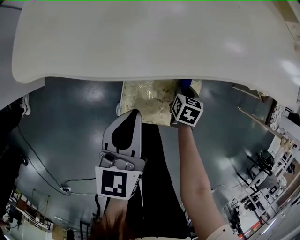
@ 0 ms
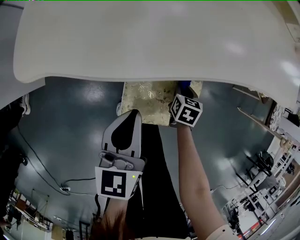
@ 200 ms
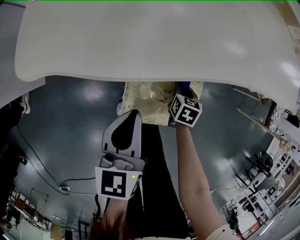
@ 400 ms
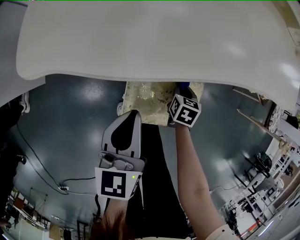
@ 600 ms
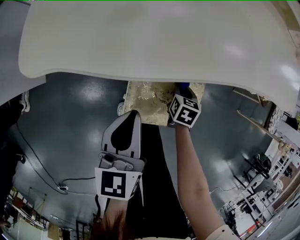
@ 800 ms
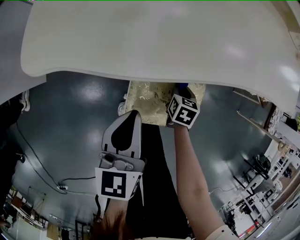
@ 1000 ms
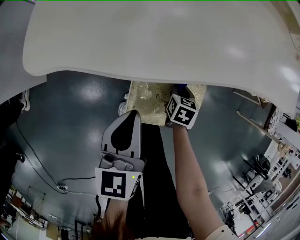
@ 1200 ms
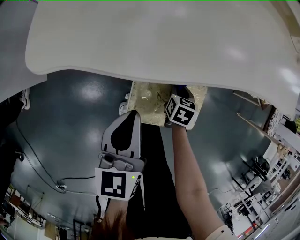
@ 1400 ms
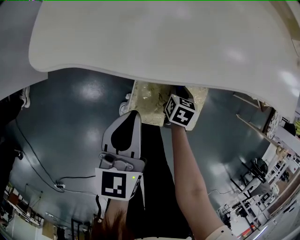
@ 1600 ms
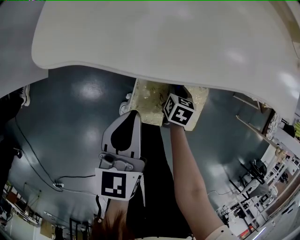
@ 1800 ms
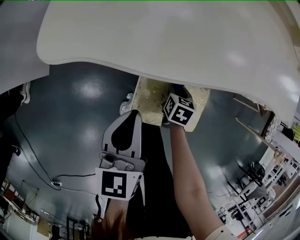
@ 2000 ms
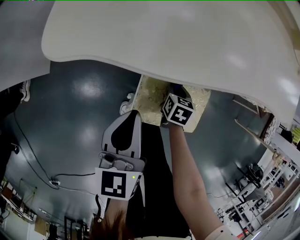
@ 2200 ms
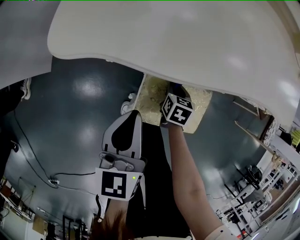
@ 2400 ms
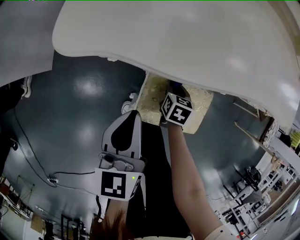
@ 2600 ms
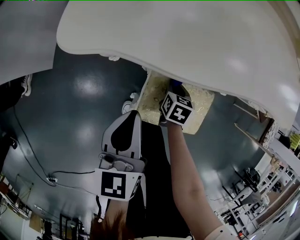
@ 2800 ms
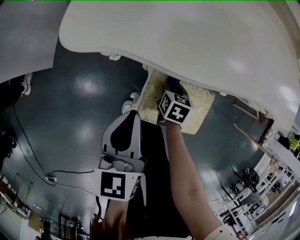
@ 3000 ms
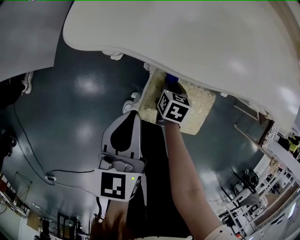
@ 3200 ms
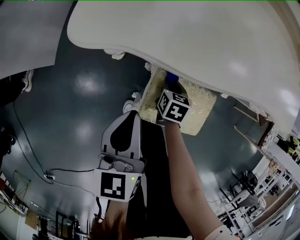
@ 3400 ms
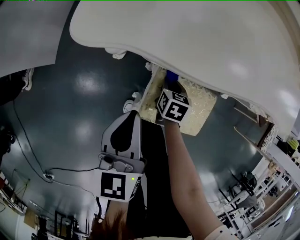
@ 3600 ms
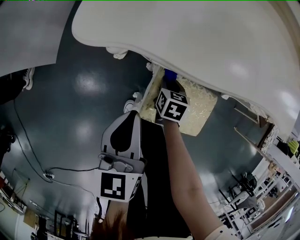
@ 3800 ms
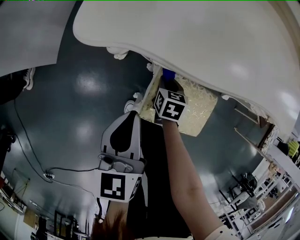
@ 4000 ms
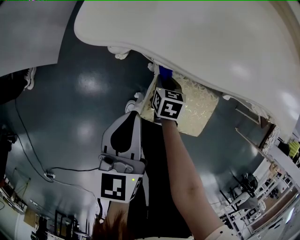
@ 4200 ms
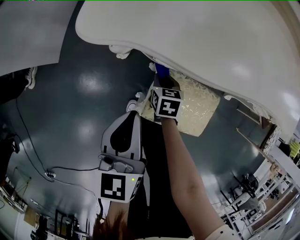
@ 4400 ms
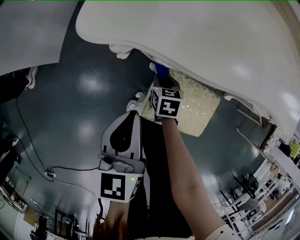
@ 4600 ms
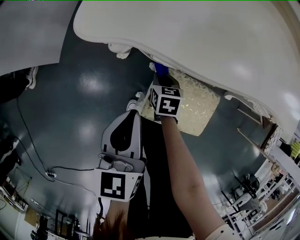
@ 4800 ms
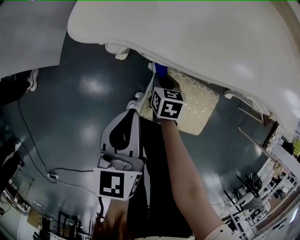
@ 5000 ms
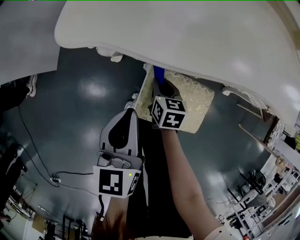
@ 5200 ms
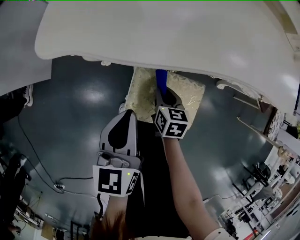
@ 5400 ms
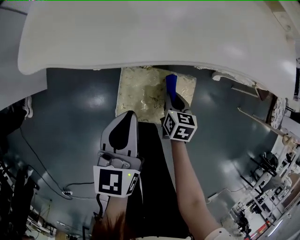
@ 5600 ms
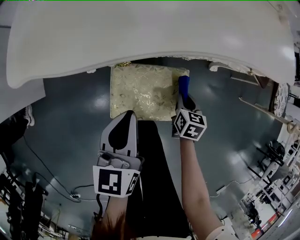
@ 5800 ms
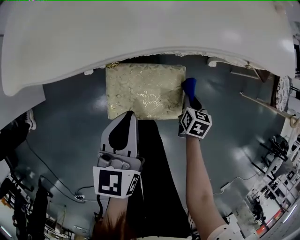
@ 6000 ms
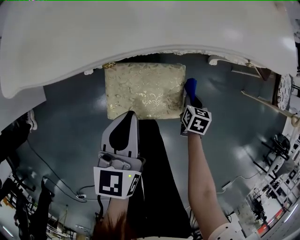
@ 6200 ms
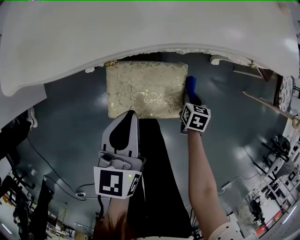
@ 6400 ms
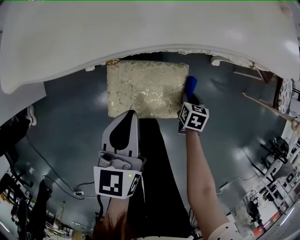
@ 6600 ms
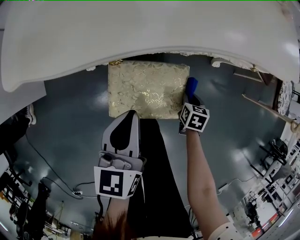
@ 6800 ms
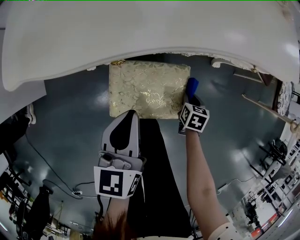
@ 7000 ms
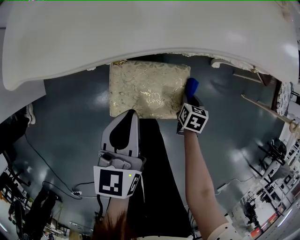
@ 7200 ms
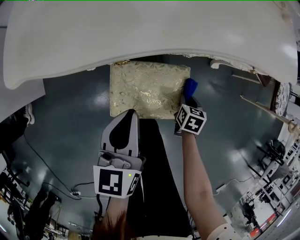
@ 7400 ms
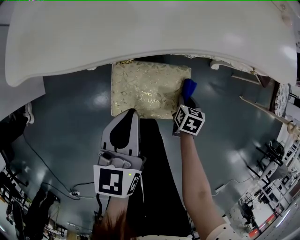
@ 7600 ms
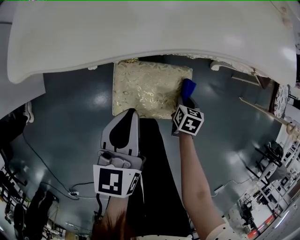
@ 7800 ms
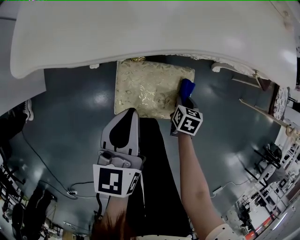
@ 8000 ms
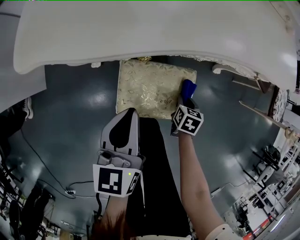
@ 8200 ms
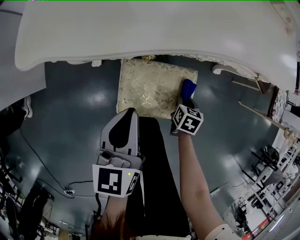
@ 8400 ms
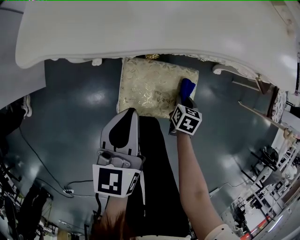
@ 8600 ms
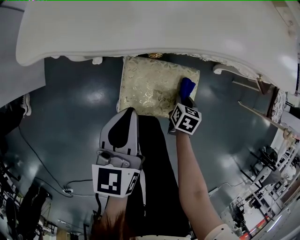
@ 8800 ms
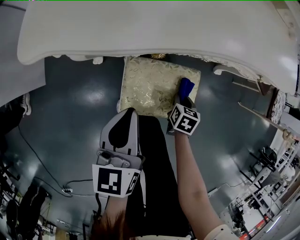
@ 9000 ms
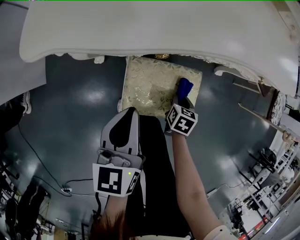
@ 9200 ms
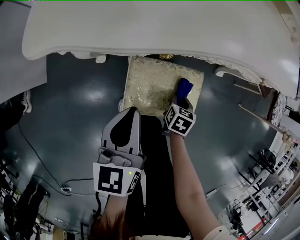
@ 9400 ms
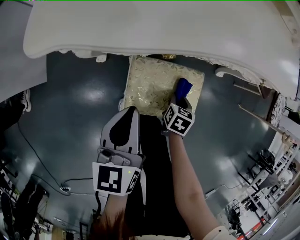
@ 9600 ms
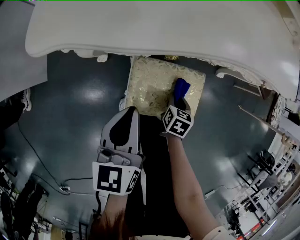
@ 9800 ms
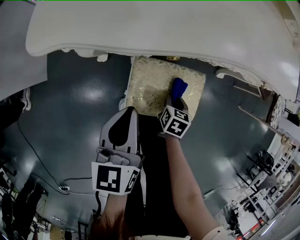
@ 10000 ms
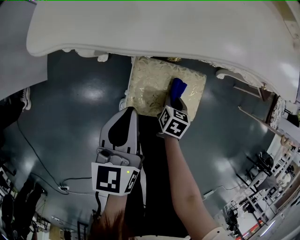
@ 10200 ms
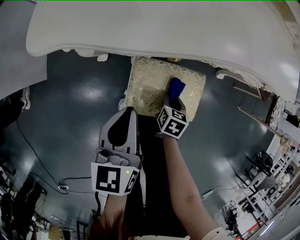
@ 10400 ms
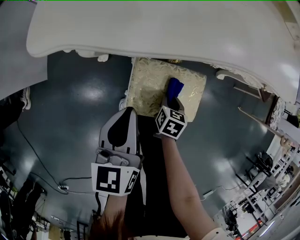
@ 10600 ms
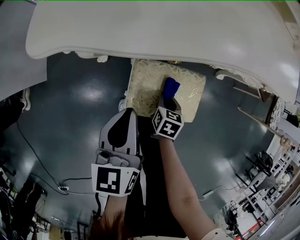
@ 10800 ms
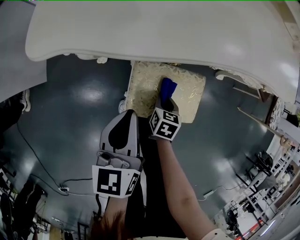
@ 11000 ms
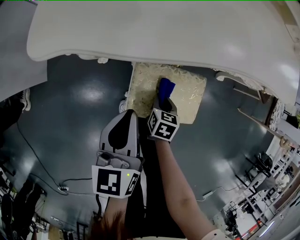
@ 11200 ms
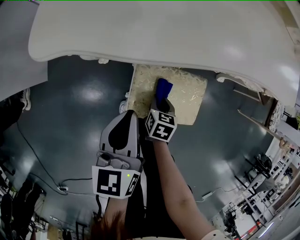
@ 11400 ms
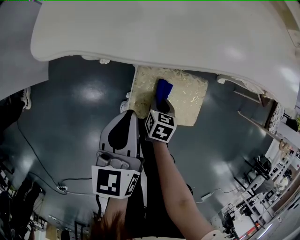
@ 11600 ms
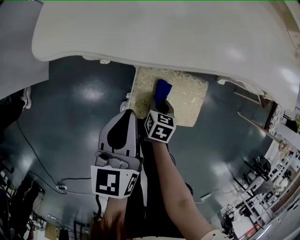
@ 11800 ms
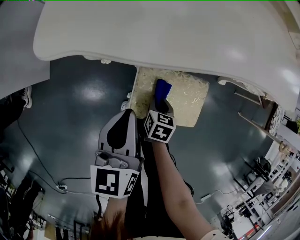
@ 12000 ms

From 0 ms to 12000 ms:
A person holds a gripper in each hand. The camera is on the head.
From 0 ms to 1600 ms: The right gripper travels to the left by about 5 cm.
From 1600 ms to 3000 ms: The left gripper shifts by about 5 cm, while the right gripper heads to the left, covering roughly 10 cm.
From 3000 ms to 4400 ms: The right gripper heads to the left, covering about 10 cm.
From 4400 ms to 6000 ms: The right gripper ends up roughly 35 cm from where it was, and rotates about 30 degrees. Meanwhile the left gripper shifts by some 20 cm, and changes its angle by some 20 degrees.
From 6000 ms to 7600 ms: The grippers move only a little.
From 7600 ms to 9000 ms: Both grippers move to the left, approximately 5 cm.
From 9000 ms to 10400 ms: The right gripper travels to the left by roughly 10 cm.
From 10400 ms to 12000 ms: The right gripper is displaced to the left by about 10 cm.

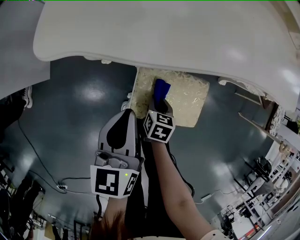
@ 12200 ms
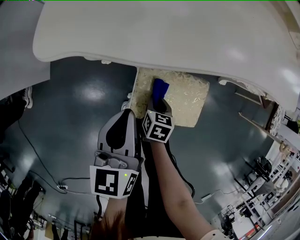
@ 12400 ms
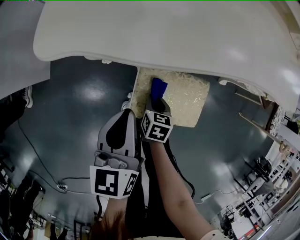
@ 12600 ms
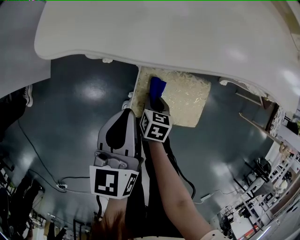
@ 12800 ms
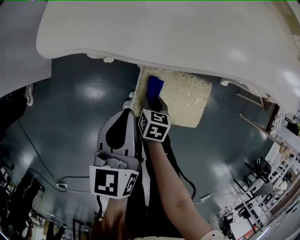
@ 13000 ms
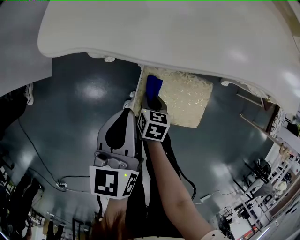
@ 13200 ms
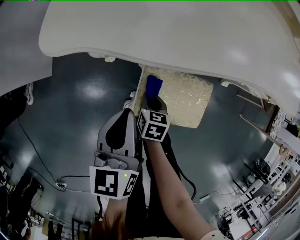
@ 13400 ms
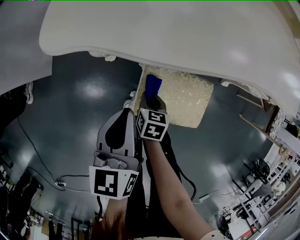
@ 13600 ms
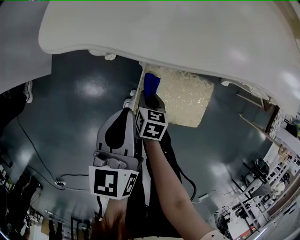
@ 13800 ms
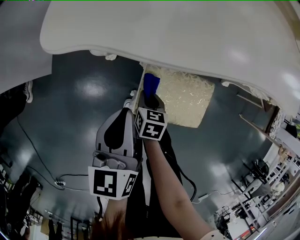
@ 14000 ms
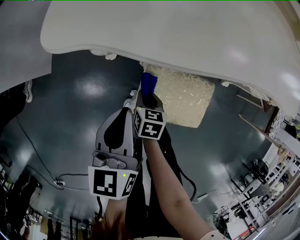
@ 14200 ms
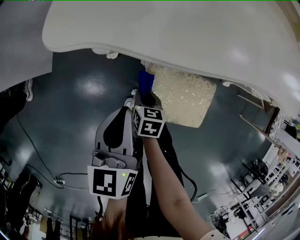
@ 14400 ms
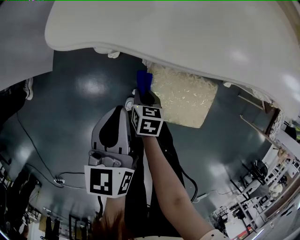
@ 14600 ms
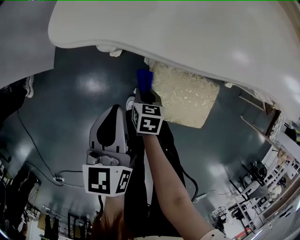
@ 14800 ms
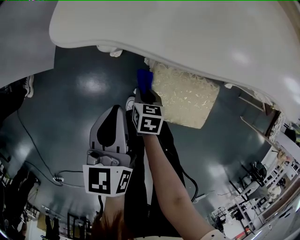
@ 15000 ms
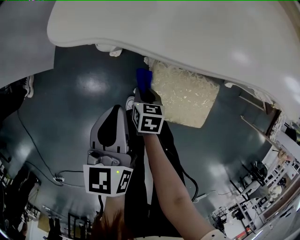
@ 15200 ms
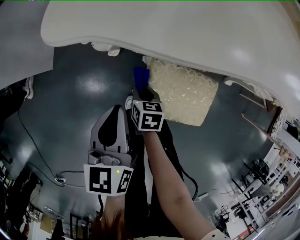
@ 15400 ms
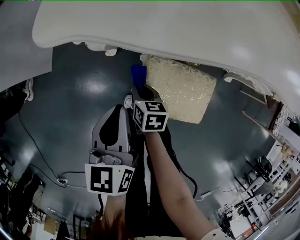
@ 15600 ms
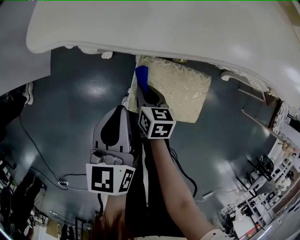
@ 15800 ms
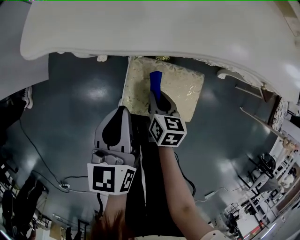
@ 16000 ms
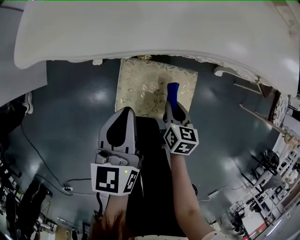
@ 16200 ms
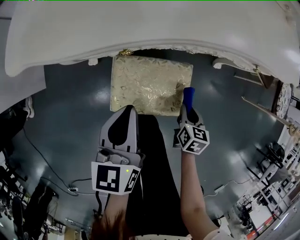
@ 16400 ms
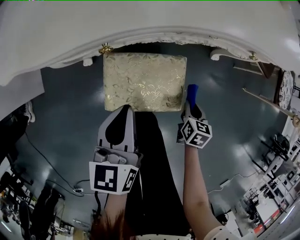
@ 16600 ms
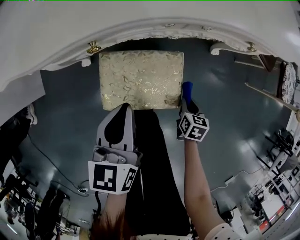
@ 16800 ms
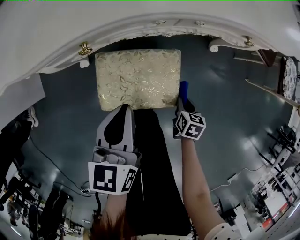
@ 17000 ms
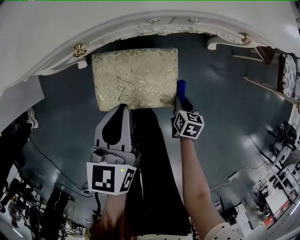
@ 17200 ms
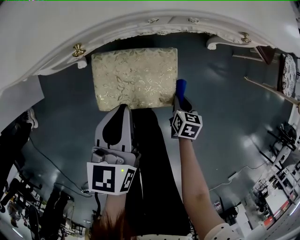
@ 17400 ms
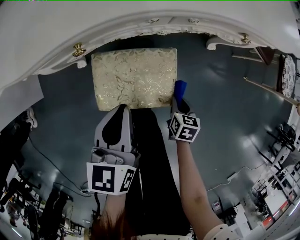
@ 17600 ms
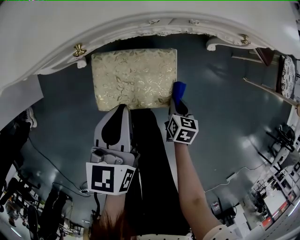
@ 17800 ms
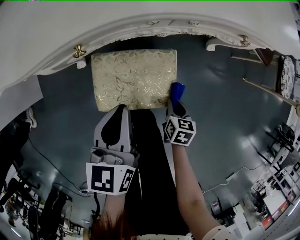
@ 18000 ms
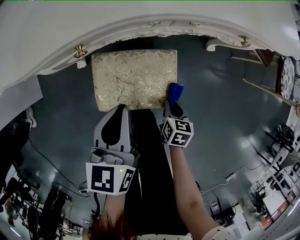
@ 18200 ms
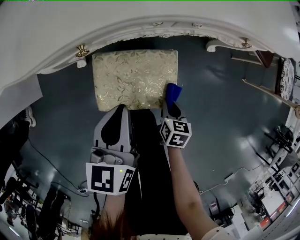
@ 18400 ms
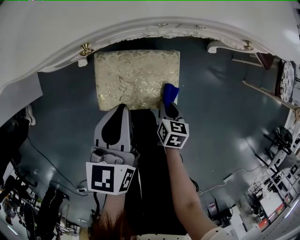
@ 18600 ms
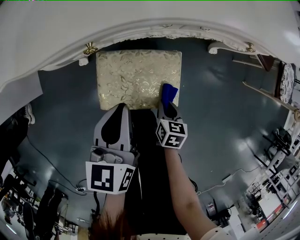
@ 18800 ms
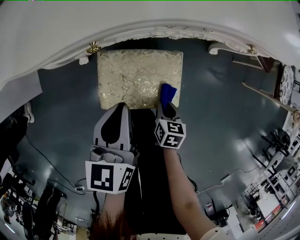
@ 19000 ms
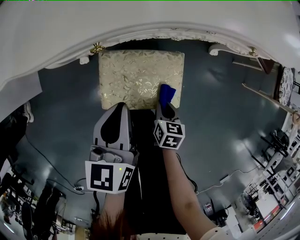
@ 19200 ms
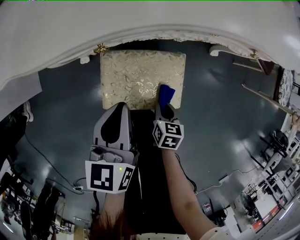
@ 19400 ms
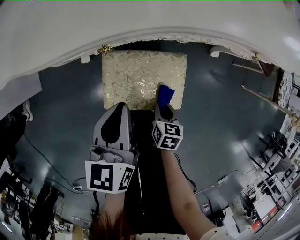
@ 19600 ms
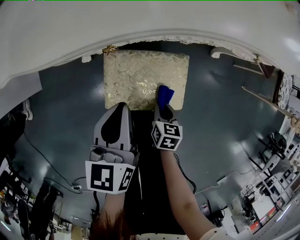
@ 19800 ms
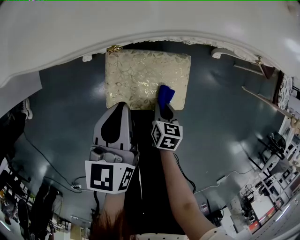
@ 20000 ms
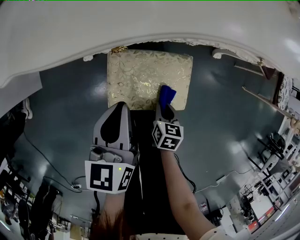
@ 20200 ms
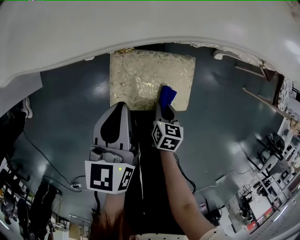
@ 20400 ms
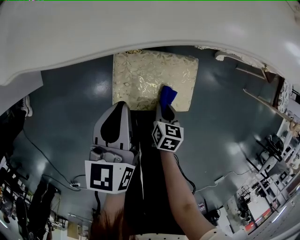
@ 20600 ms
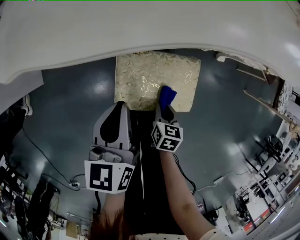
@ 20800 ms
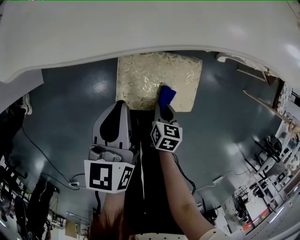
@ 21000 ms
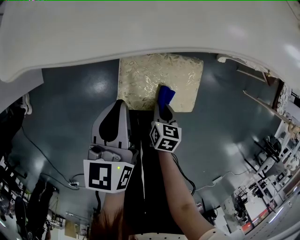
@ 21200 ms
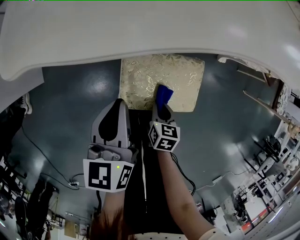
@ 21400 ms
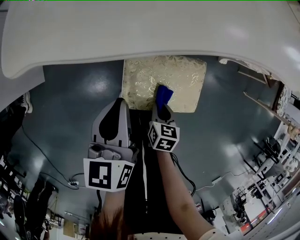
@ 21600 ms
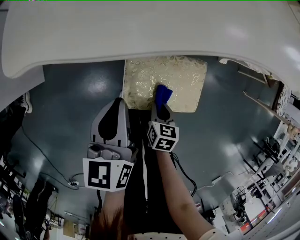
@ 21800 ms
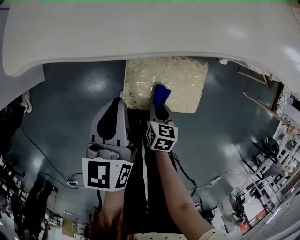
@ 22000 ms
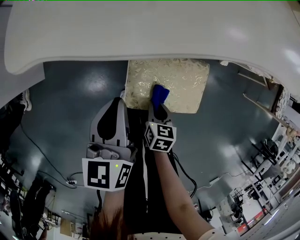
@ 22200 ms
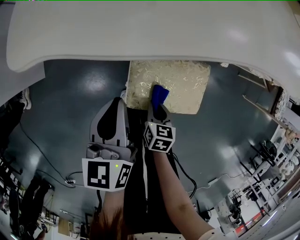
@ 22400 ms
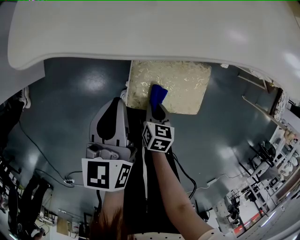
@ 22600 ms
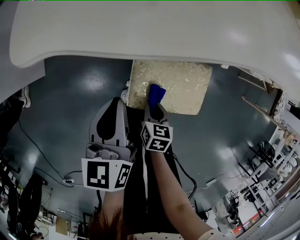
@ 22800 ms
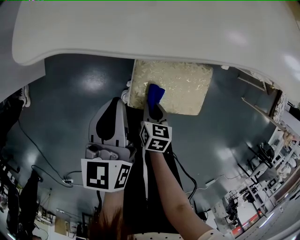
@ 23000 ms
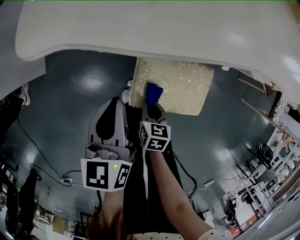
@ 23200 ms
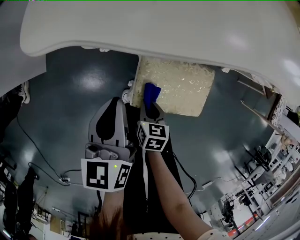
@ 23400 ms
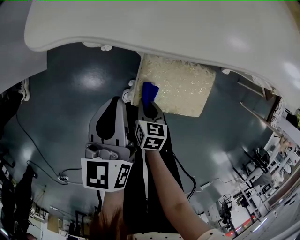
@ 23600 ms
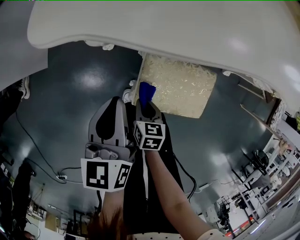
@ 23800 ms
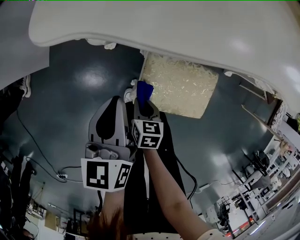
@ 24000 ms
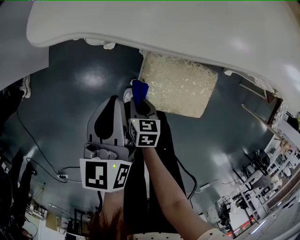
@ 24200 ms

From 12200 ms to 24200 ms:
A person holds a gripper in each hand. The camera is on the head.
From 12200 ms to 13800 ms: The right gripper heads to the left, covering some 5 cm.
From 13800 ms to 15200 ms: The right gripper changes place by about 5 cm.
From 15200 ms to 16600 ms: The right gripper shifts by roughly 40 cm, and turns by some 30 degrees; the left gripper moves about 20 cm.
From 16600 ms to 18200 ms: The right gripper shifts by about 5 cm.
From 18200 ms to 19800 ms: The right gripper moves to the left, roughly 10 cm. The left gripper goes some 5 cm to the left.
From 19800 ms to 21200 ms: Both grippers travel together to the left, roughly 5 cm.
From 21200 ms to 22600 ms: The grippers both shift to the left by roughly 5 cm.
From 22600 ms to 24200 ms: The right gripper goes approximately 10 cm to the left.
